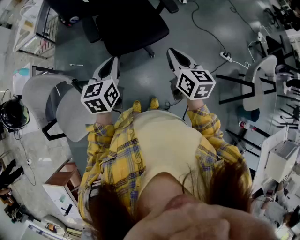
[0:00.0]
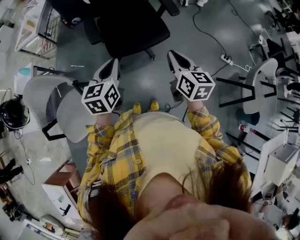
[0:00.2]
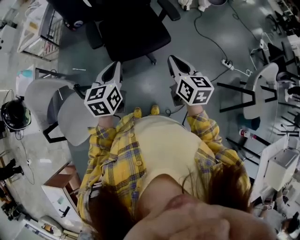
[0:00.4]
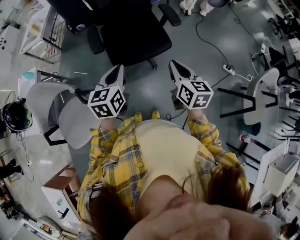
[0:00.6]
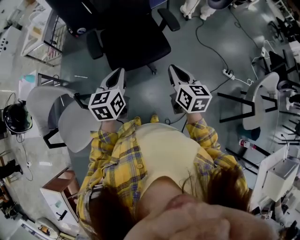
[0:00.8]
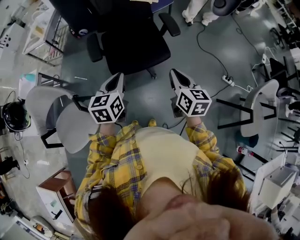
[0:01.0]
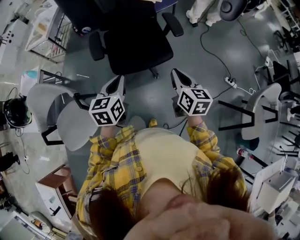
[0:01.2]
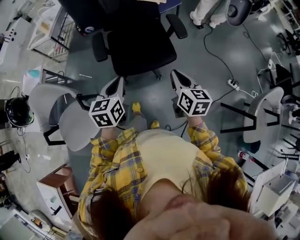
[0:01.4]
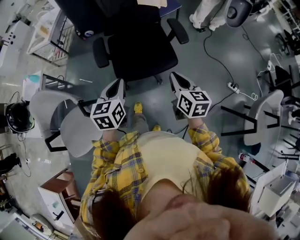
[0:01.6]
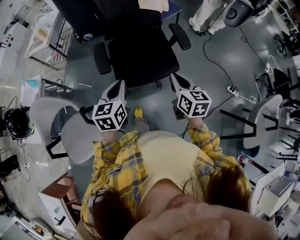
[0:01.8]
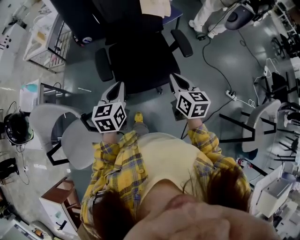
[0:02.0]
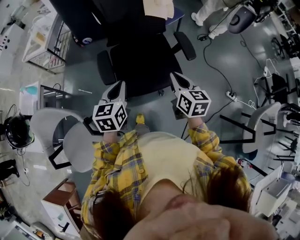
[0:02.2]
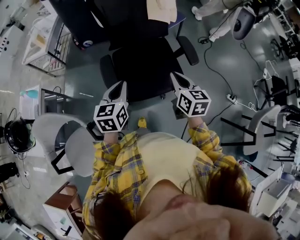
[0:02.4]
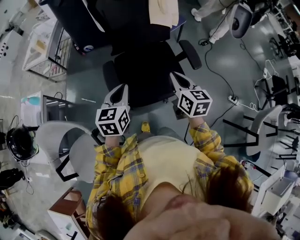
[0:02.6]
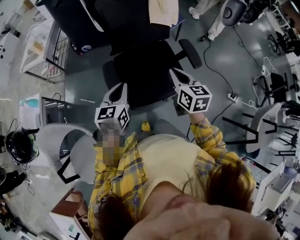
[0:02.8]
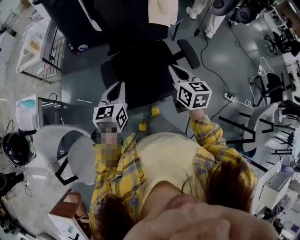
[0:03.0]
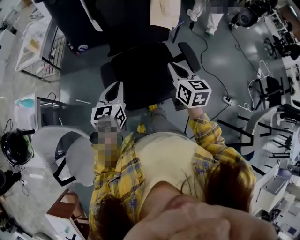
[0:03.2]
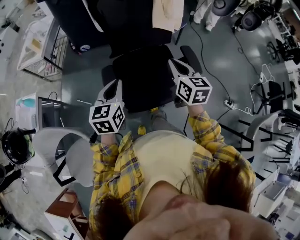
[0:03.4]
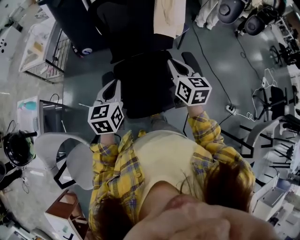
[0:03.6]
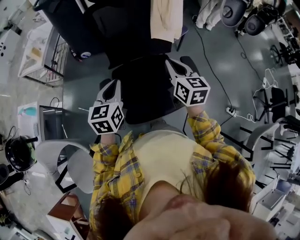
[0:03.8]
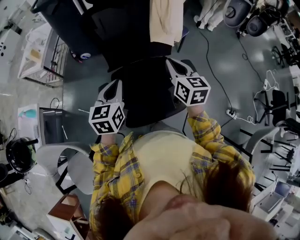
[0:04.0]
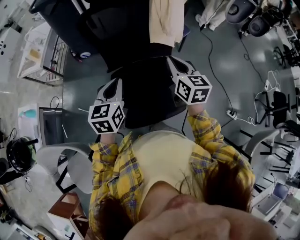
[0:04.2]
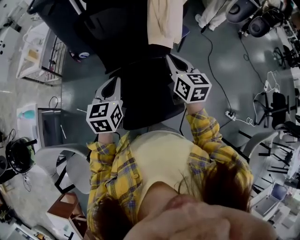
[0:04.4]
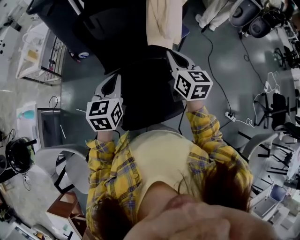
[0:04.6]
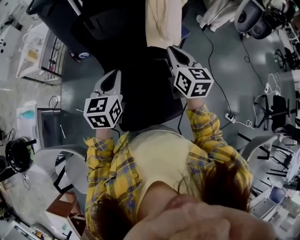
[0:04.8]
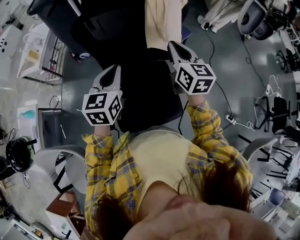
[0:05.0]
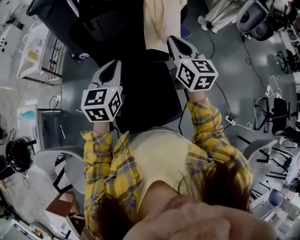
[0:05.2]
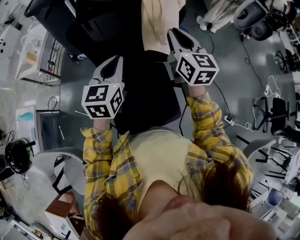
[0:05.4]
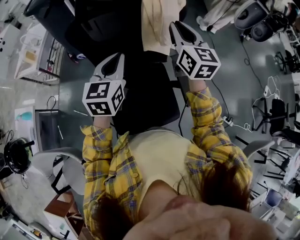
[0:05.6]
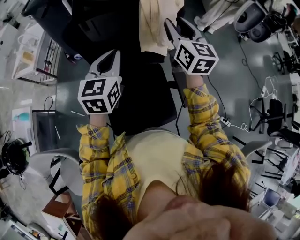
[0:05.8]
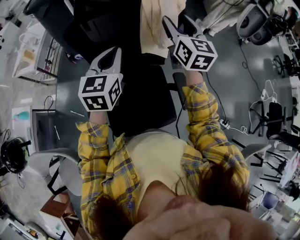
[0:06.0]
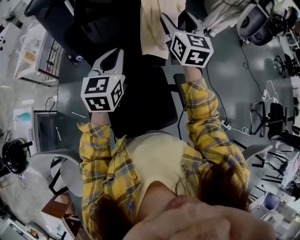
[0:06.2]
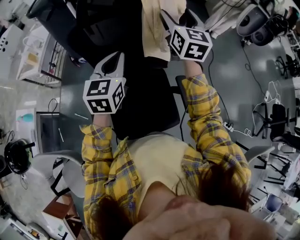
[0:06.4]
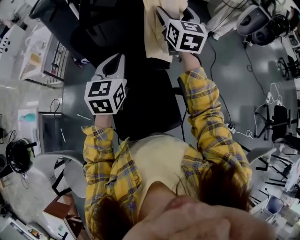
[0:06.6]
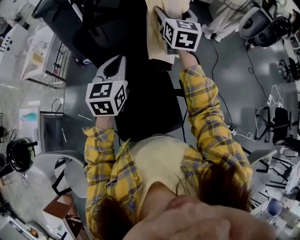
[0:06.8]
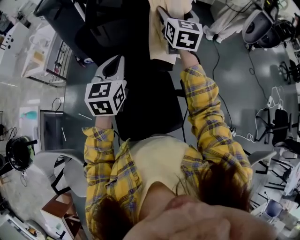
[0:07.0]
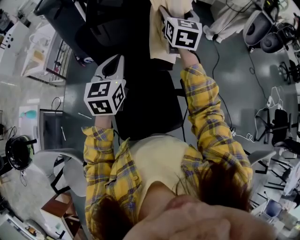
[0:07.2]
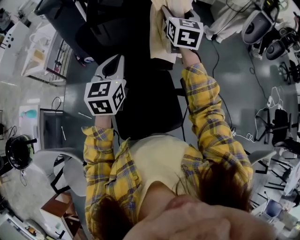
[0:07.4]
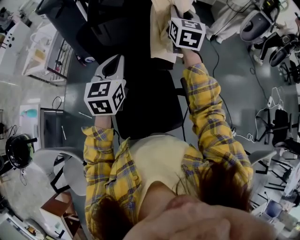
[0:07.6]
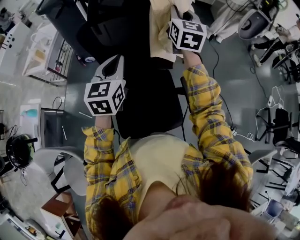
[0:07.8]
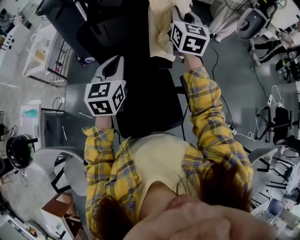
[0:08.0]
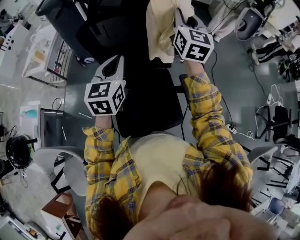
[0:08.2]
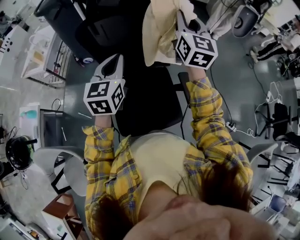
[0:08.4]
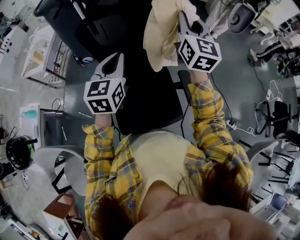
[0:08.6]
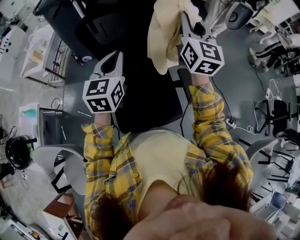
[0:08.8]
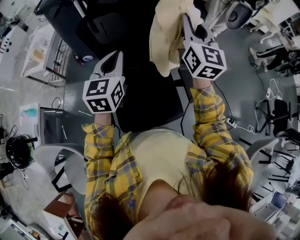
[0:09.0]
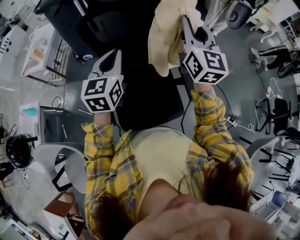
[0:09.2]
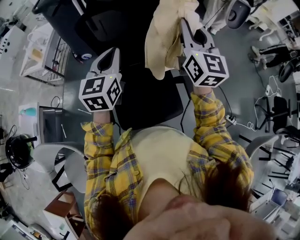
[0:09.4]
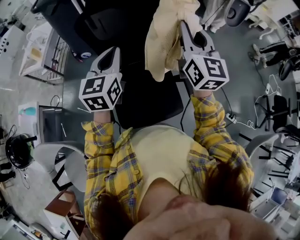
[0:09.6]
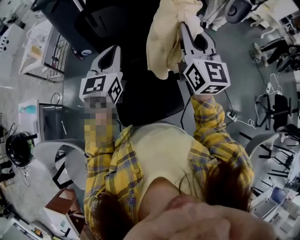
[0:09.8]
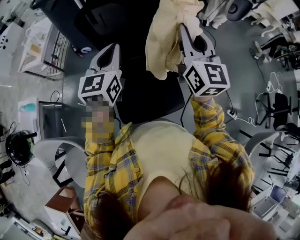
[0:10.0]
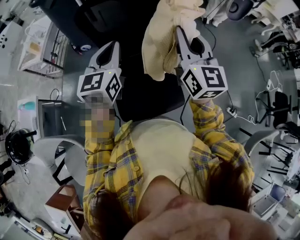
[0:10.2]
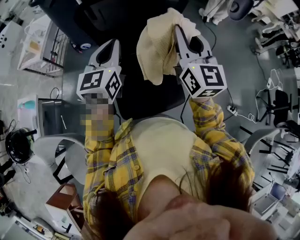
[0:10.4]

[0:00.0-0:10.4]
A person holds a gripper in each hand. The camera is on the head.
0:00.0 to 0:01.4: The left gripper moves roughly 5 cm, while the right gripper travels forward by approximately 5 cm.
0:01.4 to 0:03.0: The two grippers go approximately 25 cm forward and to the left.
0:03.0 to 0:04.4: The grippers both shift forward by approximately 20 cm.
0:04.4 to 0:06.0: The left gripper is displaced forward, upward and to the right by approximately 15 cm; the right gripper travels forward and upward by about 20 cm, and opens up.
0:06.0 to 0:07.4: The right gripper shifts approximately 5 cm forward.
0:07.4 to 0:09.0: The left gripper is displaced backward by roughly 5 cm. Meanwhile the right gripper moves backward, roughly 15 cm, and closes up.
0:09.0 to 0:10.4: The right gripper shifts approximately 10 cm backward.

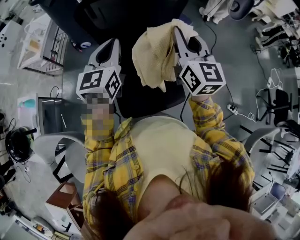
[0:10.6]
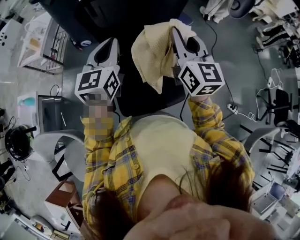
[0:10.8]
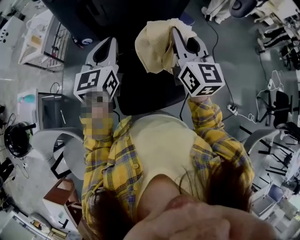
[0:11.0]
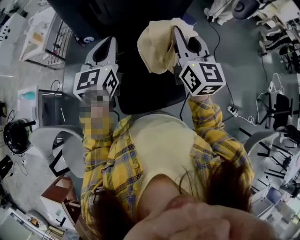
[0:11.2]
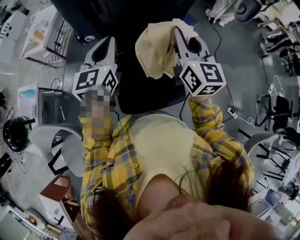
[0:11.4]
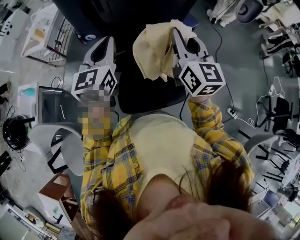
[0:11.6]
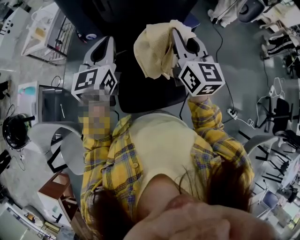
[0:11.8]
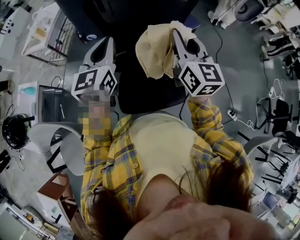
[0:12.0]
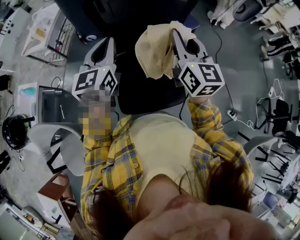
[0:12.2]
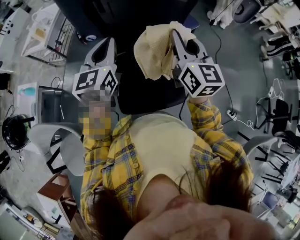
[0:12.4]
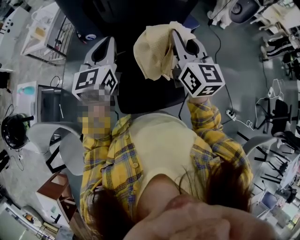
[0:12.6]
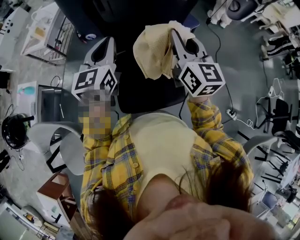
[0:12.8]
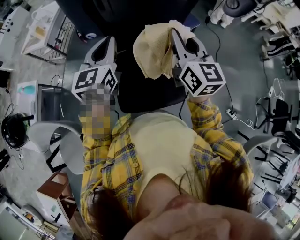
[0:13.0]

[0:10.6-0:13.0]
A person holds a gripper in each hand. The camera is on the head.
0:10.6 to 0:11.8: The grippers make only small movements.
0:11.8 to 0:13.0: Both grippers stay about where they are.

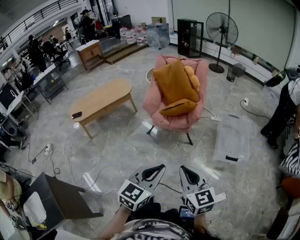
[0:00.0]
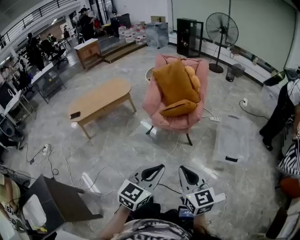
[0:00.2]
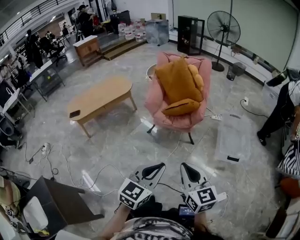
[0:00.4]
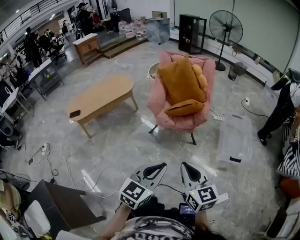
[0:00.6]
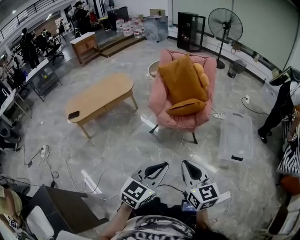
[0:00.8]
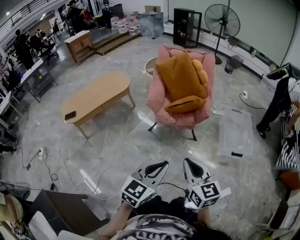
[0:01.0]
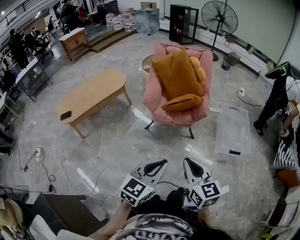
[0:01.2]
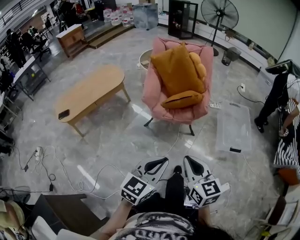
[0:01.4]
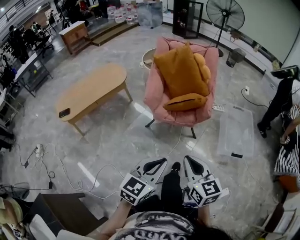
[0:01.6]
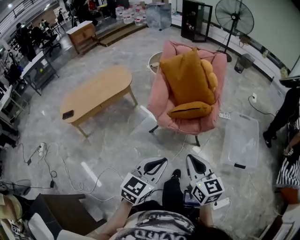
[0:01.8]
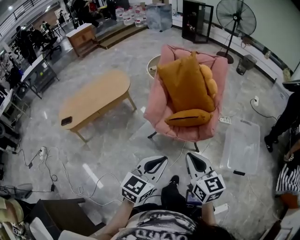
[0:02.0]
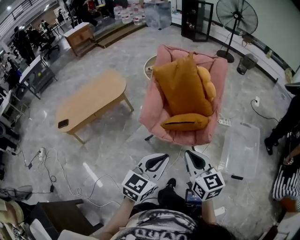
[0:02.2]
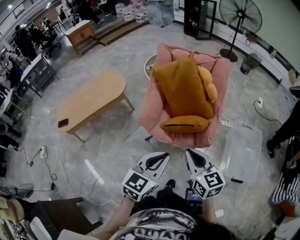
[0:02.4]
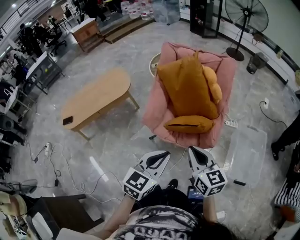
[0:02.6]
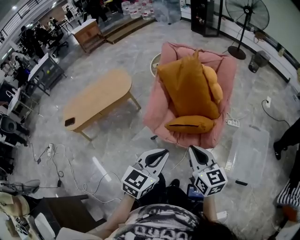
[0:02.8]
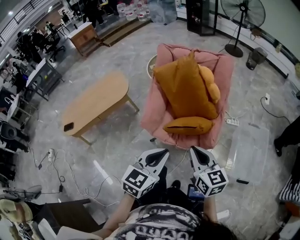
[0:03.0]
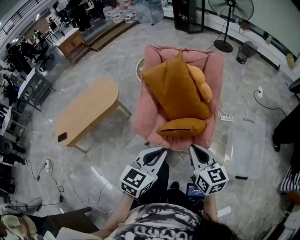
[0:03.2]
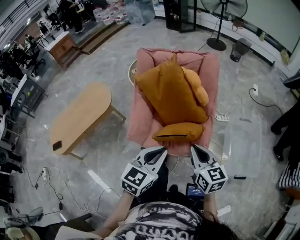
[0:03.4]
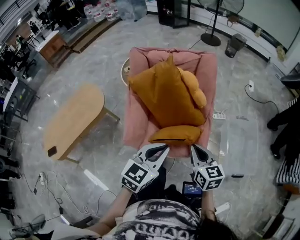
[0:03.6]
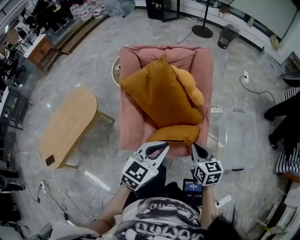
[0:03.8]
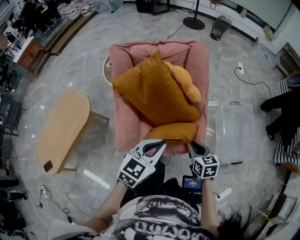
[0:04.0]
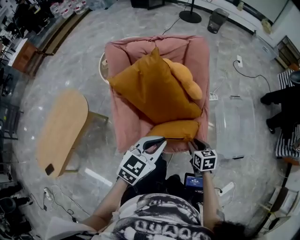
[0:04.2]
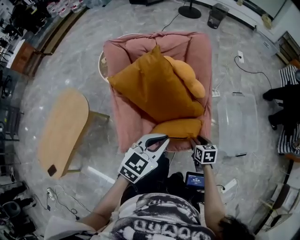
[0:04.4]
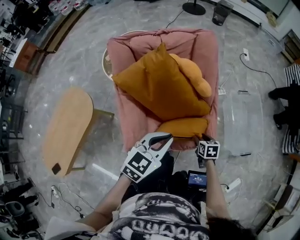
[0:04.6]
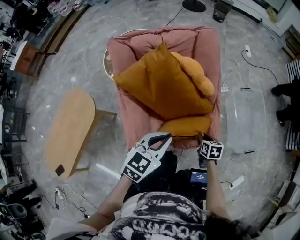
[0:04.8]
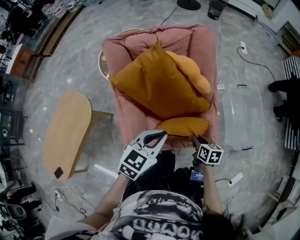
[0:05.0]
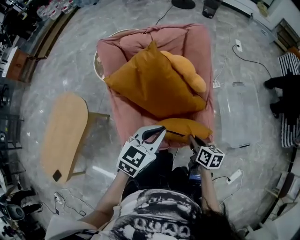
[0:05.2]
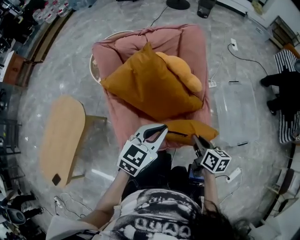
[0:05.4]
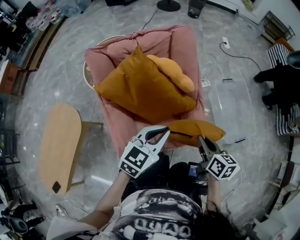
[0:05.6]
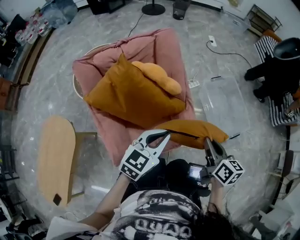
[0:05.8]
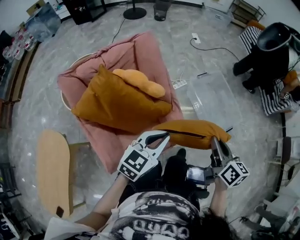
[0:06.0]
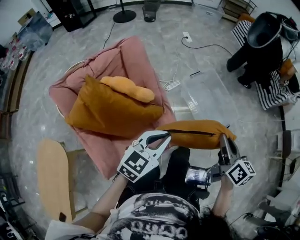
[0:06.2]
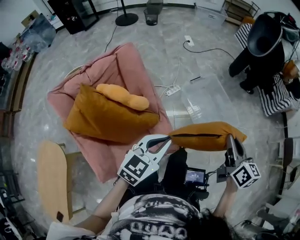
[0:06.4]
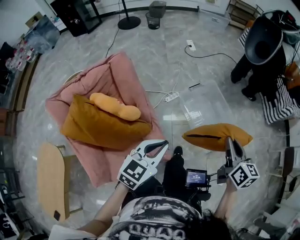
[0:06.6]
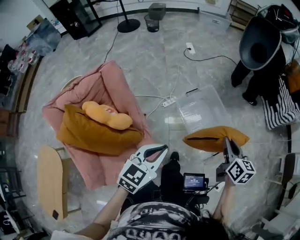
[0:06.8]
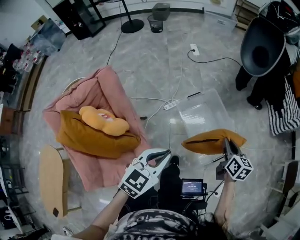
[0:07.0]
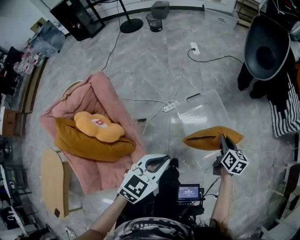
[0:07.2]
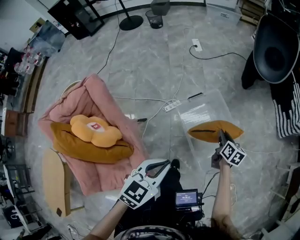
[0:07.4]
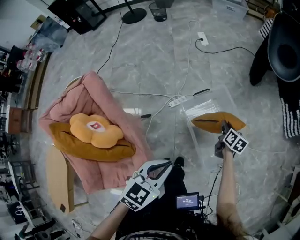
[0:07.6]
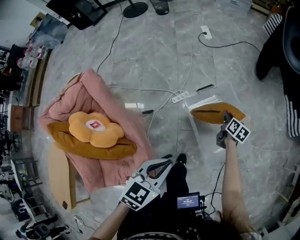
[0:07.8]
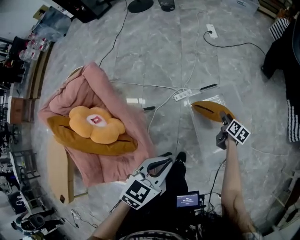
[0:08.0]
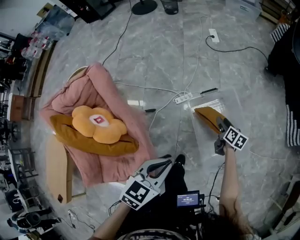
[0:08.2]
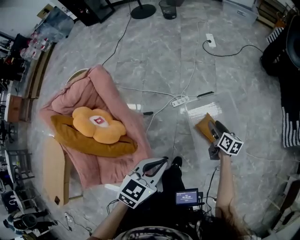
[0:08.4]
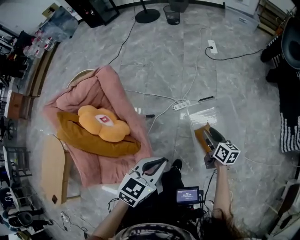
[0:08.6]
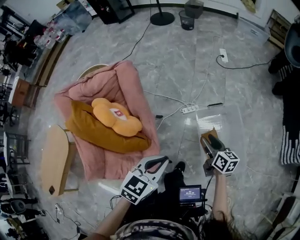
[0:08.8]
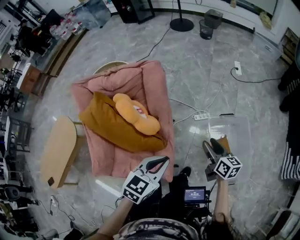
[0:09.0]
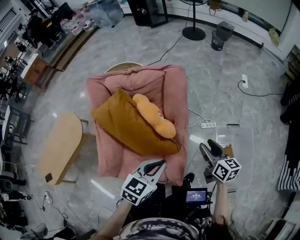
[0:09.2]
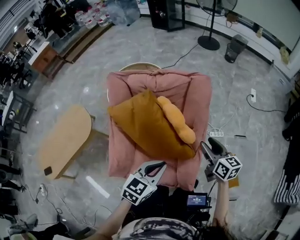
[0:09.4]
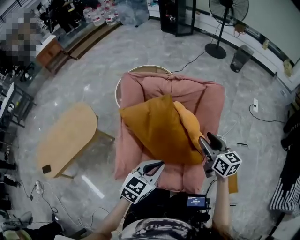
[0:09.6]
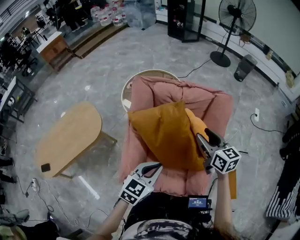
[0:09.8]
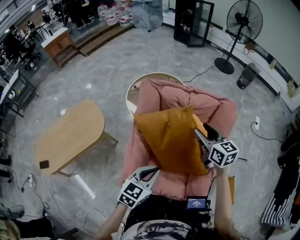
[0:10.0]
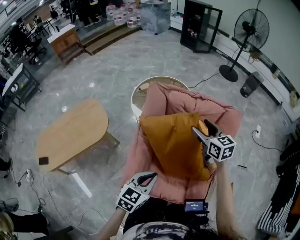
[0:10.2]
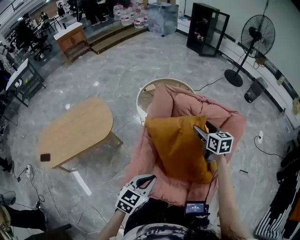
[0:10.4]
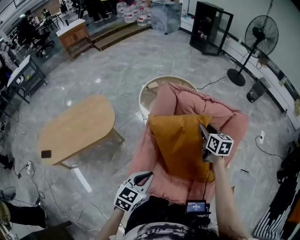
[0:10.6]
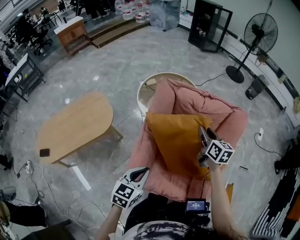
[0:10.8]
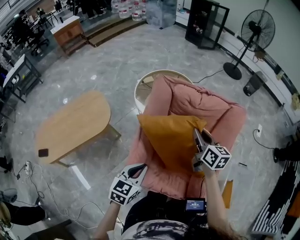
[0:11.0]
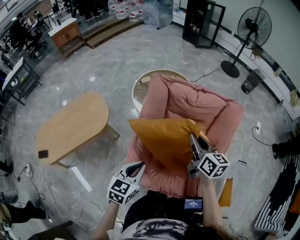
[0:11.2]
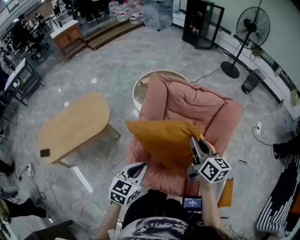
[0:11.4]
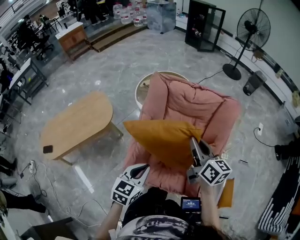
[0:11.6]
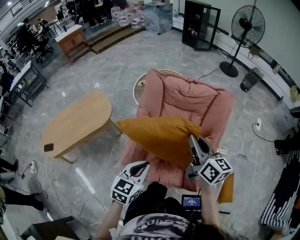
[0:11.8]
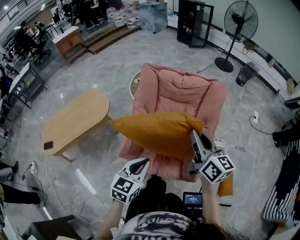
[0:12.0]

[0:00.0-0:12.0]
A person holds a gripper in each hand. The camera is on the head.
0:00.0 to 0:01.6: The two grippers go roughly 20 cm forward and to the left.
0:01.6 to 0:03.0: Both grippers move forward, approximately 30 cm.
0:03.0 to 0:04.4: The left gripper ends up approximately 25 cm from where it was, and changes its angle by some 30 degrees; the right gripper moves downward, some 25 cm, points its fingers roughly 40 degrees further downward, and opens up.
0:04.4 to 0:06.0: The right gripper travels upward by about 25 cm, tilts its fingers approximately 30 degrees upward, and closes its fingers; the left gripper changes place by approximately 10 cm, and swivels approximately 20 degrees.
0:06.0 to 0:07.6: The left gripper moves forward and to the right, some 35 cm. The right gripper heads forward, downward and to the right, covering about 60 cm, and changes its angle by some 20 degrees.
0:07.6 to 0:09.0: The right gripper changes place by approximately 35 cm, turns by approximately 40 degrees, and opens up. The left gripper shifts by some 15 cm, and turns by some 20 degrees.
0:09.0 to 0:10.4: Both grippers are carried to the left, about 50 cm. The right gripper turns by some 40 degrees. Meanwhile the left gripper turns by some 30 degrees.
0:10.4 to 0:12.0: The right gripper travels backward and upward by about 30 cm, changes its angle by about 30 degrees, and closes up, while the left gripper shifts about 15 cm backward, to the right and upward.
